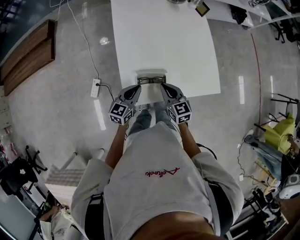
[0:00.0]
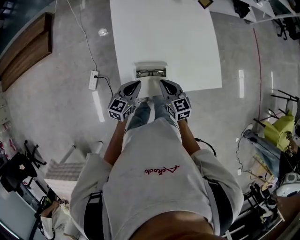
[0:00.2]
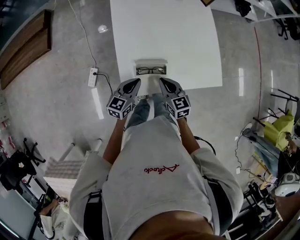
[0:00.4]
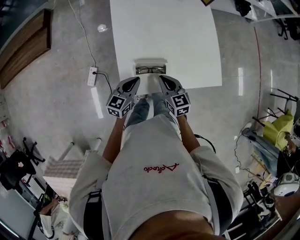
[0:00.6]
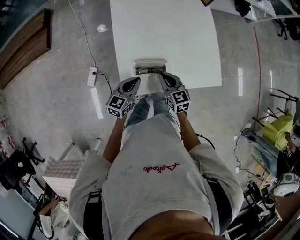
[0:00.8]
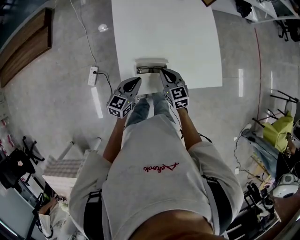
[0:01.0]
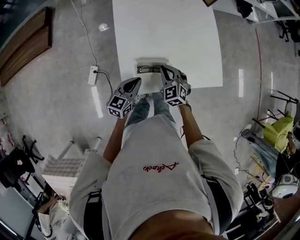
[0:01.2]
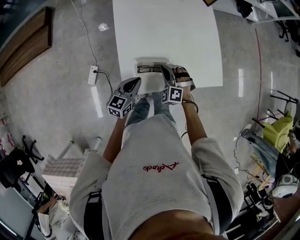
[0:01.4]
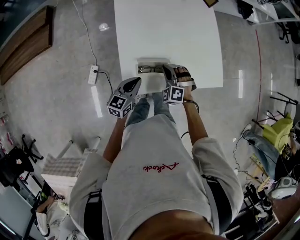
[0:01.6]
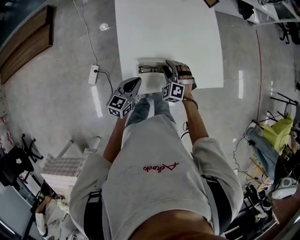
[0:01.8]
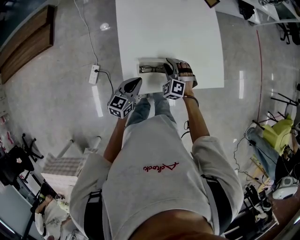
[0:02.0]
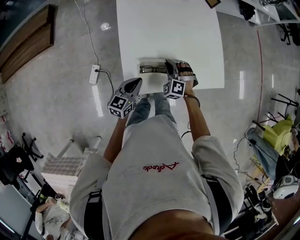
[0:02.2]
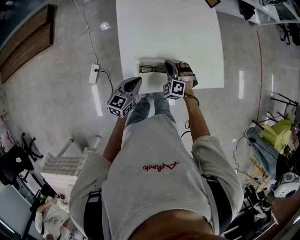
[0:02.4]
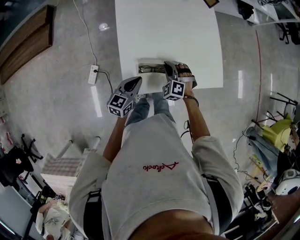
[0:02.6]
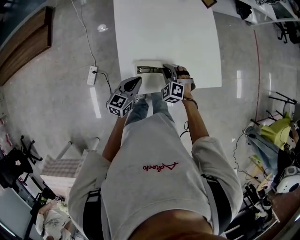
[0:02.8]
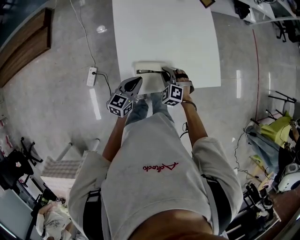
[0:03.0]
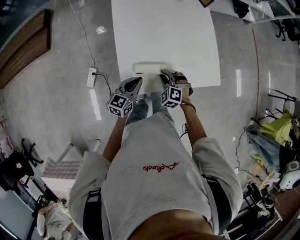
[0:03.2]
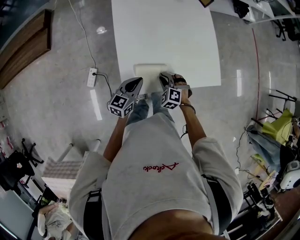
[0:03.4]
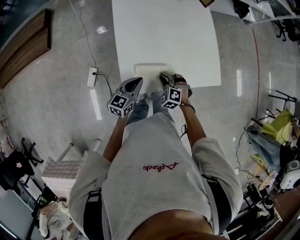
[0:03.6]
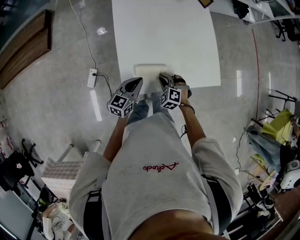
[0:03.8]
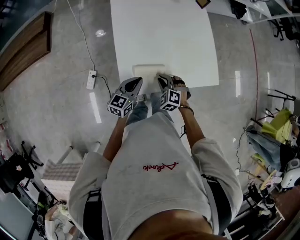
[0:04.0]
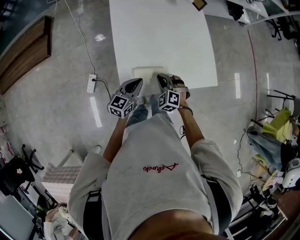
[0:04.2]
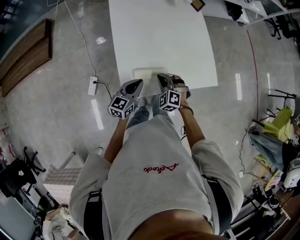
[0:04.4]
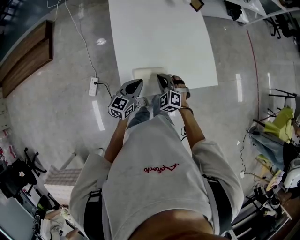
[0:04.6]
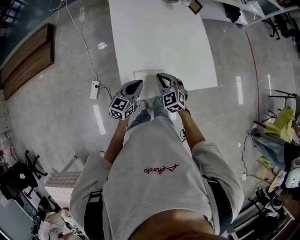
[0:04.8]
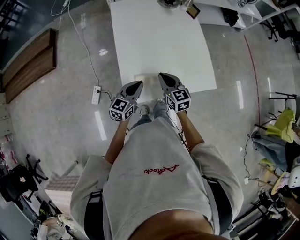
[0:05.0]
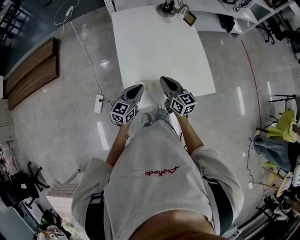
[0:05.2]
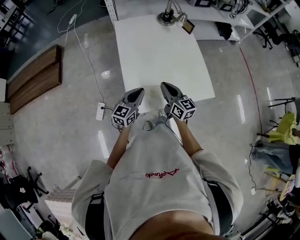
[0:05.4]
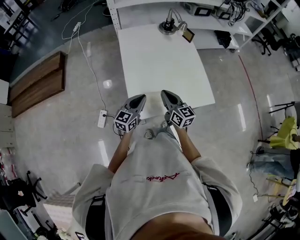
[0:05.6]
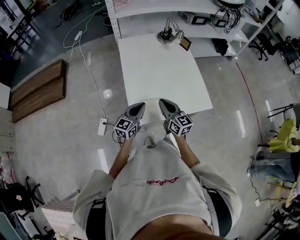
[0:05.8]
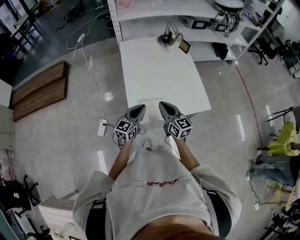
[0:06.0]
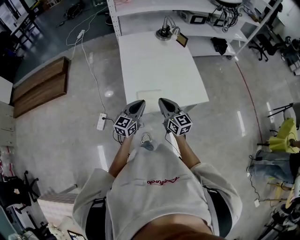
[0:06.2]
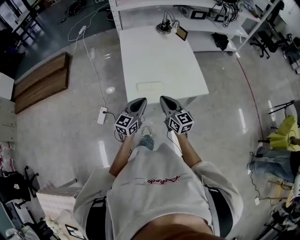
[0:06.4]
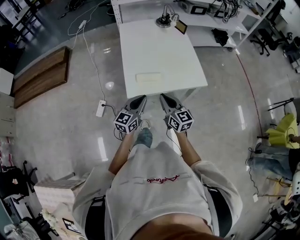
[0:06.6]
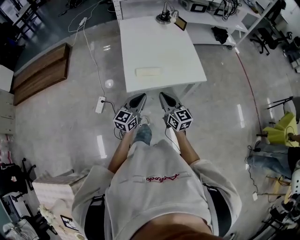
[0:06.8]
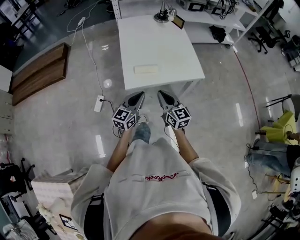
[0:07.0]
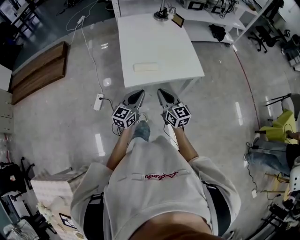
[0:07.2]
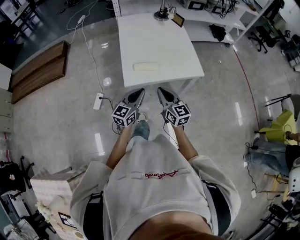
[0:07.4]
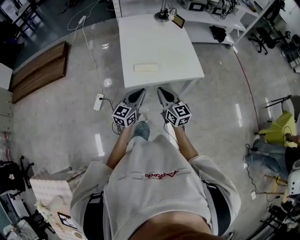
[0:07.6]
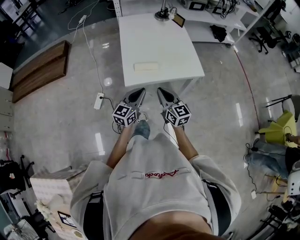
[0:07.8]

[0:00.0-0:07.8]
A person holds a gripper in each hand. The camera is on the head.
0:00.0 to 0:01.6: The right gripper heads downward, covering some 5 cm, and twists roughly 70 degrees counterclockwise, seen from behind.
0:01.6 to 0:03.2: There are only small adjustments of the grippers.
0:03.2 to 0:04.6: The right gripper heads upward, covering some 5 cm.
0:04.6 to 0:06.2: The left gripper heads upward and backward, covering roughly 10 cm. The right gripper is displaced upward and backward by roughly 20 cm, and angles its fingers upward, by roughly 40 degrees.
0:06.2 to 0:07.8: The two grippers go approximately 15 cm backward.

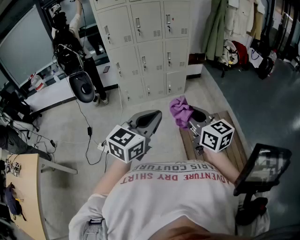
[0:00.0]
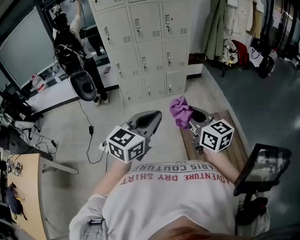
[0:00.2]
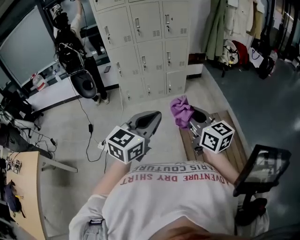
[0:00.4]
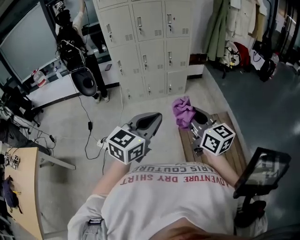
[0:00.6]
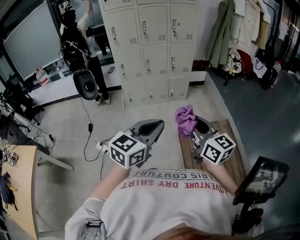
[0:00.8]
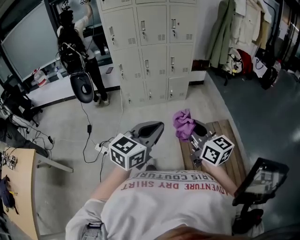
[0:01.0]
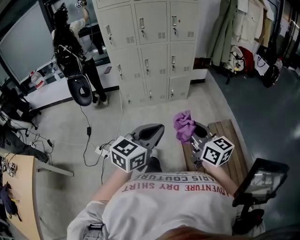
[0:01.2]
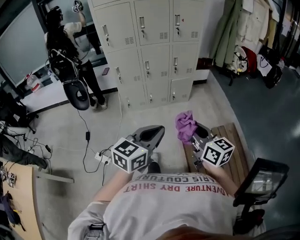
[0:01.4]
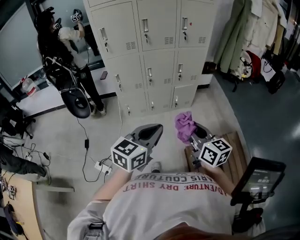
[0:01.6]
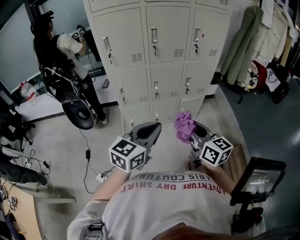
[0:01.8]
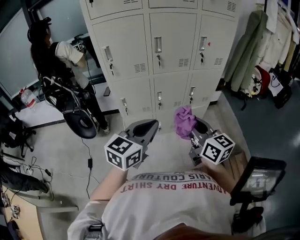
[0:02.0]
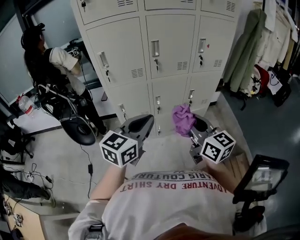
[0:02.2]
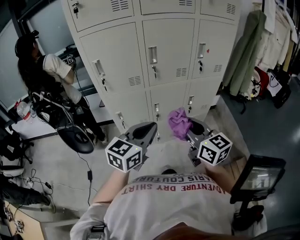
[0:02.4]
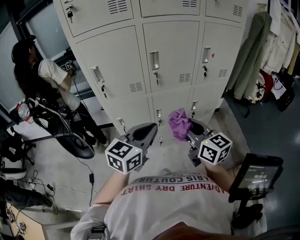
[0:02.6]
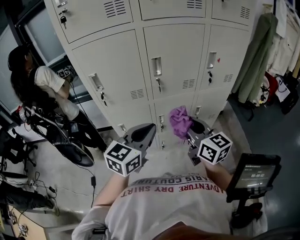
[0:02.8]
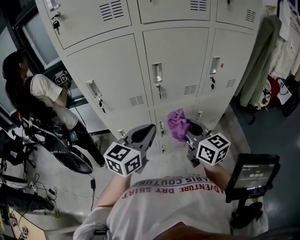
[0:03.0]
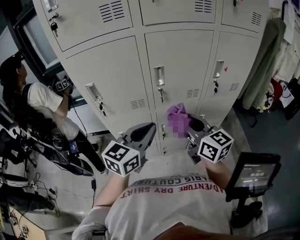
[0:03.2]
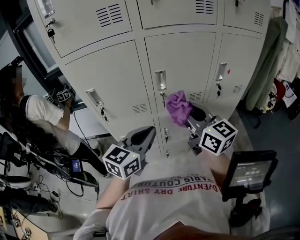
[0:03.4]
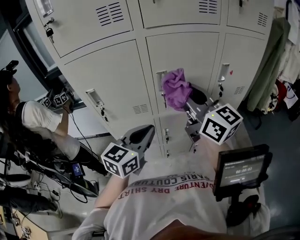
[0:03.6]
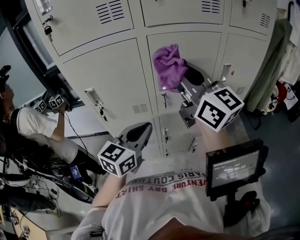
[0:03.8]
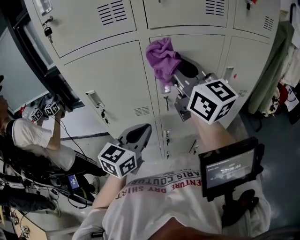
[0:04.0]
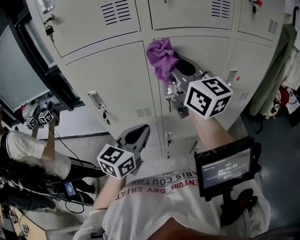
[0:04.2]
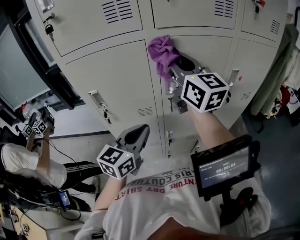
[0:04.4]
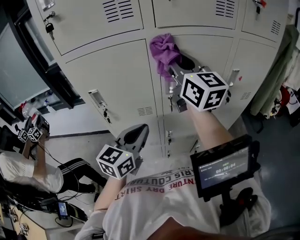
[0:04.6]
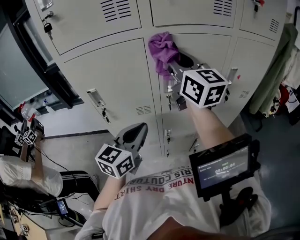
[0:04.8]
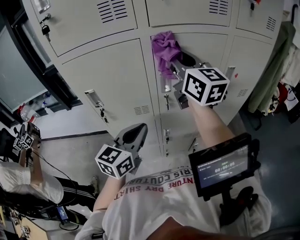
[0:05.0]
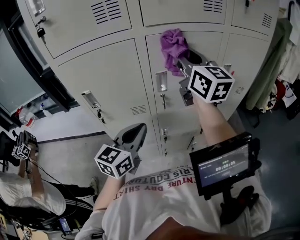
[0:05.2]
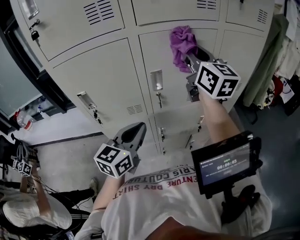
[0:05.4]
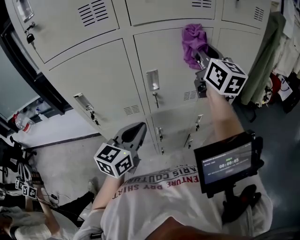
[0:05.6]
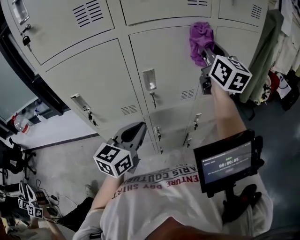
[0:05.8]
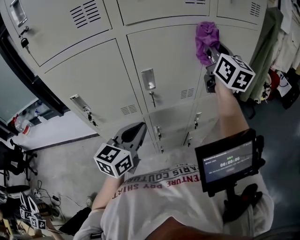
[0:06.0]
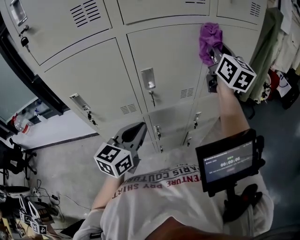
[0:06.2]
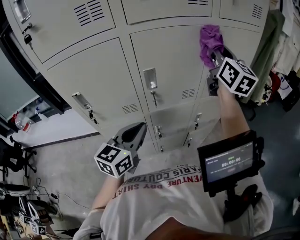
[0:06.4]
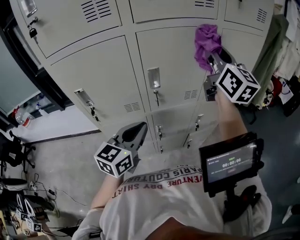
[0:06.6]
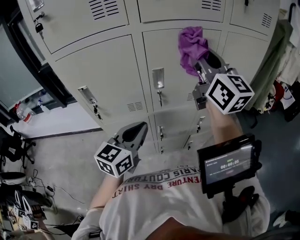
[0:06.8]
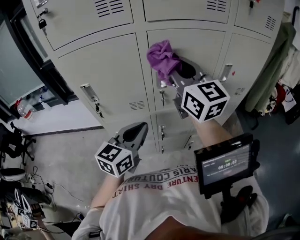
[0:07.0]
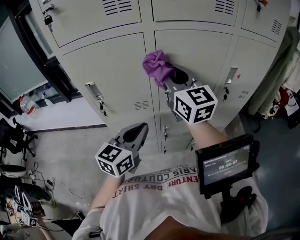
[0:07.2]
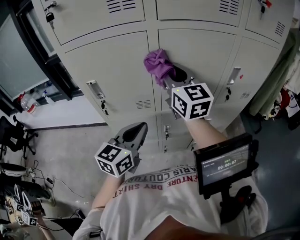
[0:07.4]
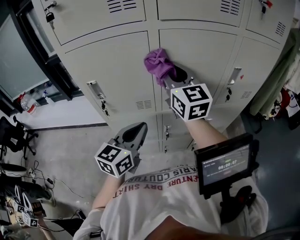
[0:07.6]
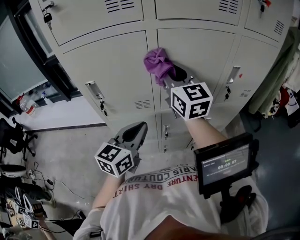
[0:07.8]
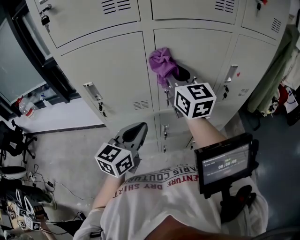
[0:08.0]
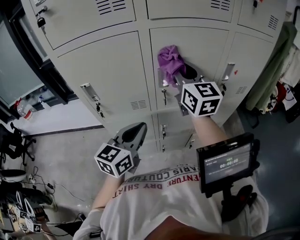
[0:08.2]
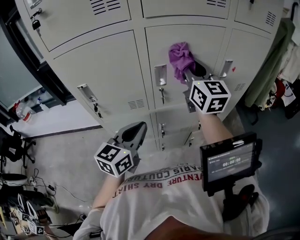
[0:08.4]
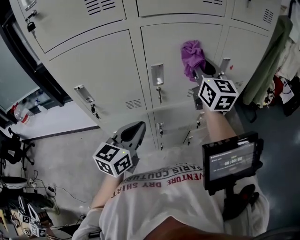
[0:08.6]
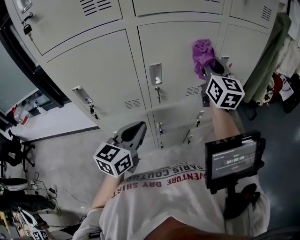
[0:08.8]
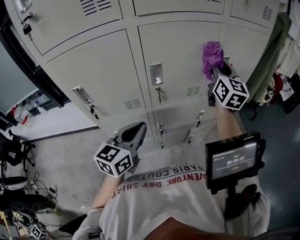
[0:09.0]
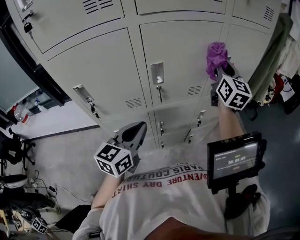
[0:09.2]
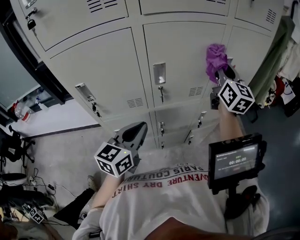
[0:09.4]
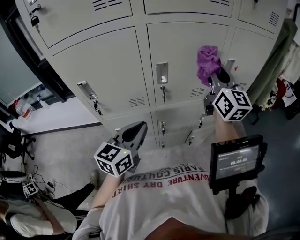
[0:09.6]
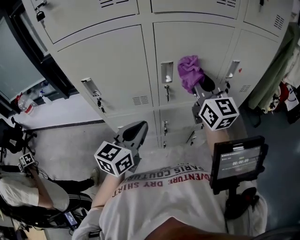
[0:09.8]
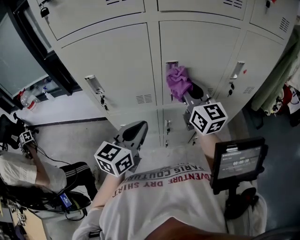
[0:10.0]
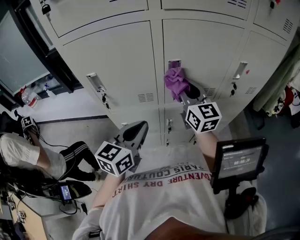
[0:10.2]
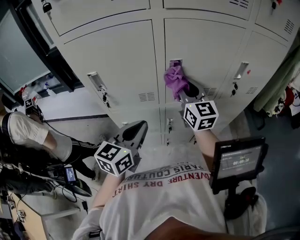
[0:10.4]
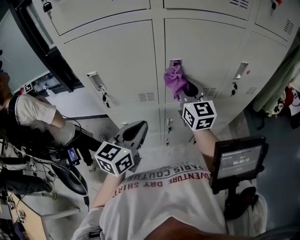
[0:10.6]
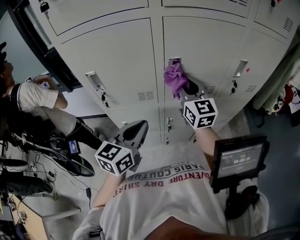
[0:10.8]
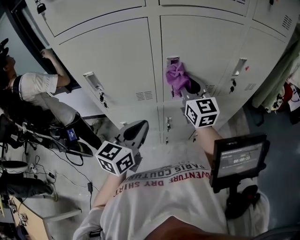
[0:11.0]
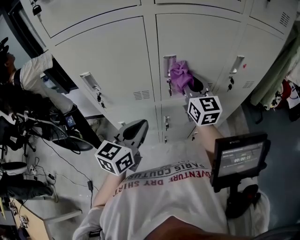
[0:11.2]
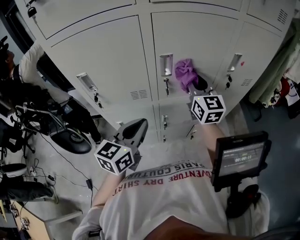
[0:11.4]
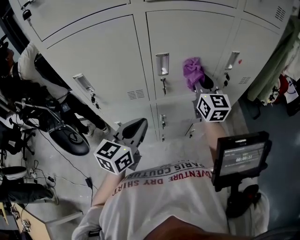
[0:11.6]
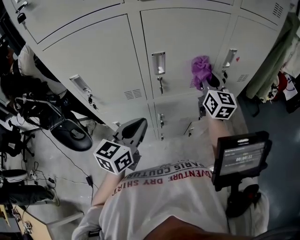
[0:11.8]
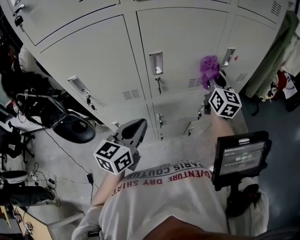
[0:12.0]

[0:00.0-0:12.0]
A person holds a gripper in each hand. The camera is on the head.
0:00.0 to 0:01.6: The grippers both shift forward by about 30 cm.
0:01.6 to 0:03.0: Both grippers are carried forward, some 50 cm.
0:03.0 to 0:04.4: The right gripper is displaced upward and forward by about 30 cm, and changes its angle by approximately 20 degrees, while the left gripper heads forward and to the left, covering approximately 10 cm.
0:04.4 to 0:06.0: The right gripper is displaced to the right by approximately 25 cm, and swivels some 30 degrees; the left gripper heads to the right, covering roughly 5 cm.
0:06.0 to 0:07.6: The left gripper moves to the left, roughly 5 cm. Meanwhile the right gripper goes some 25 cm to the left, and rotates approximately 30 degrees.
0:07.6 to 0:09.0: The right gripper moves to the right, approximately 25 cm, and changes its angle by about 30 degrees.
0:09.0 to 0:10.4: The right gripper is displaced to the left and downward by some 20 cm, and turns by about 30 degrees.
0:10.4 to 0:12.0: The left gripper moves some 5 cm, while the right gripper heads to the right, covering roughly 20 cm, and swivels roughly 20 degrees.

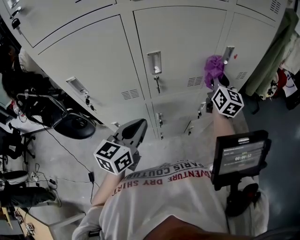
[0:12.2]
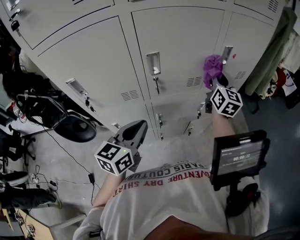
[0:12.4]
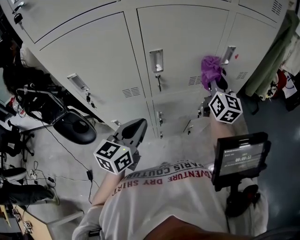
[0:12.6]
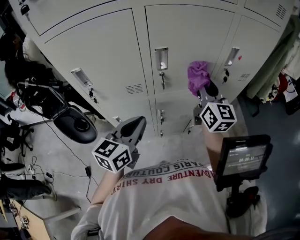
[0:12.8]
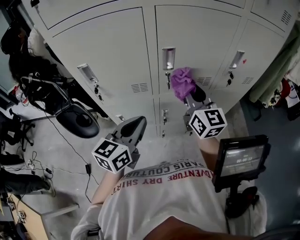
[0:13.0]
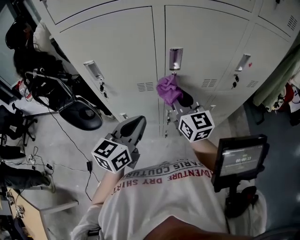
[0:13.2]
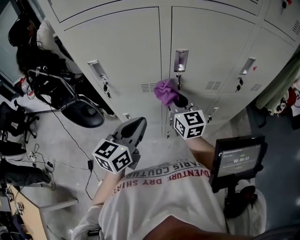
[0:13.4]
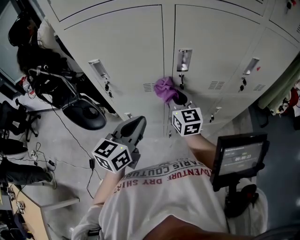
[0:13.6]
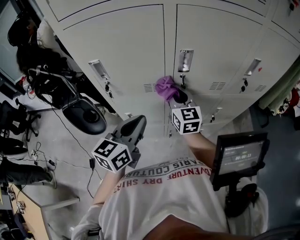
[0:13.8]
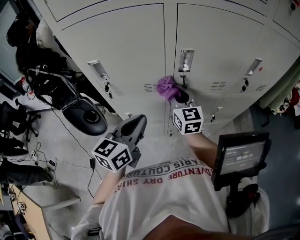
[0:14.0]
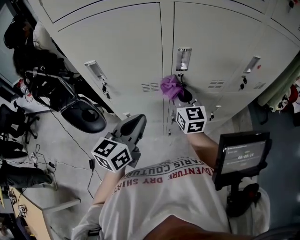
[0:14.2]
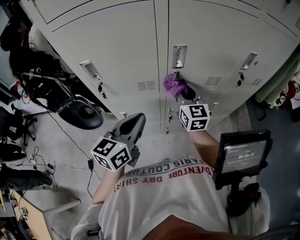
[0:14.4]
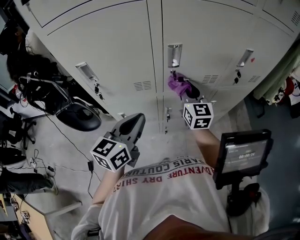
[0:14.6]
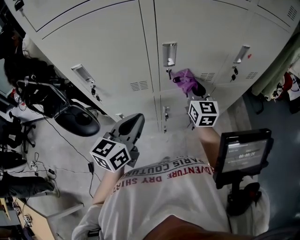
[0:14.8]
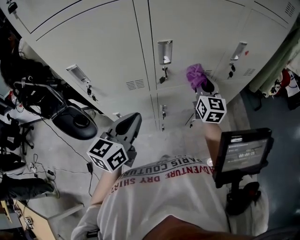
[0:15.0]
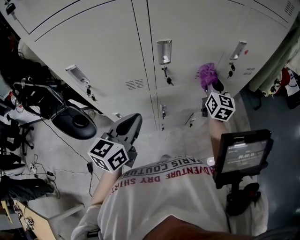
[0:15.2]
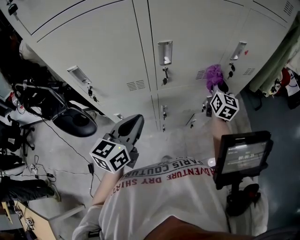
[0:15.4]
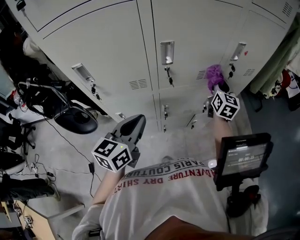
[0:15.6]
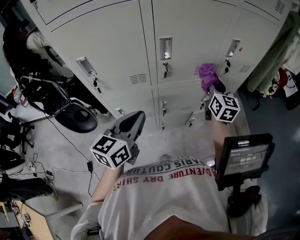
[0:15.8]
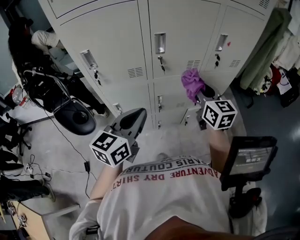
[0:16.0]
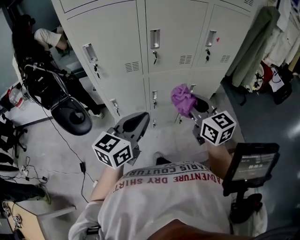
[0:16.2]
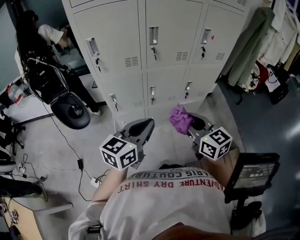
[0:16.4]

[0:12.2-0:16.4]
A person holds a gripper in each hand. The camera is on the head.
0:12.2 to 0:13.6: The left gripper is displaced to the left by about 5 cm. The right gripper heads to the left, covering some 30 cm, and swivels some 30 degrees.
0:13.6 to 0:15.0: The right gripper travels to the right by some 20 cm, and rotates roughly 20 degrees.
0:15.0 to 0:16.4: The left gripper shifts roughly 25 cm backward and to the right; the right gripper is displaced backward by about 40 cm, and turns by approximately 30 degrees.
